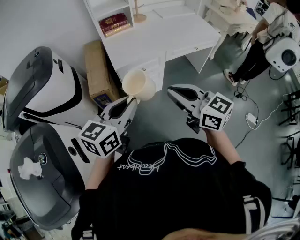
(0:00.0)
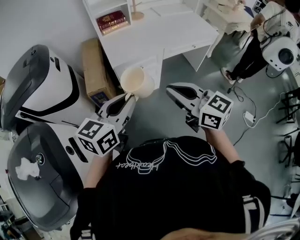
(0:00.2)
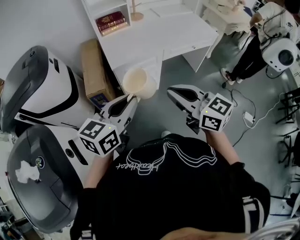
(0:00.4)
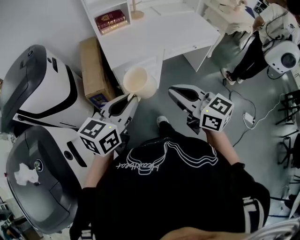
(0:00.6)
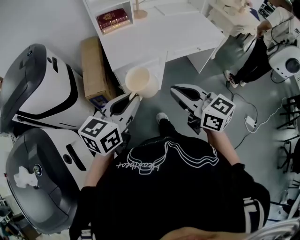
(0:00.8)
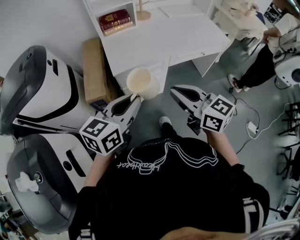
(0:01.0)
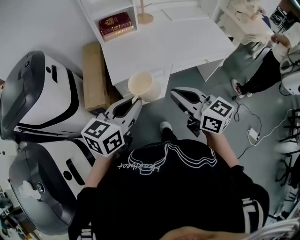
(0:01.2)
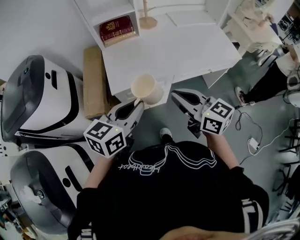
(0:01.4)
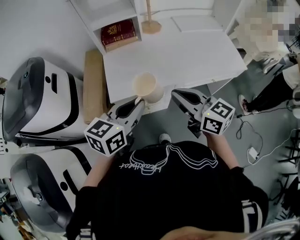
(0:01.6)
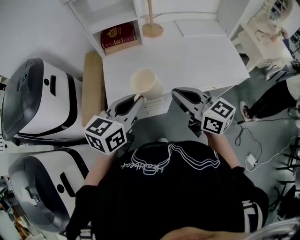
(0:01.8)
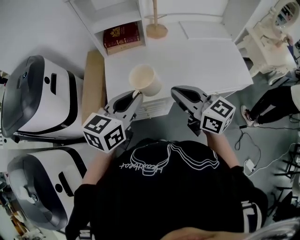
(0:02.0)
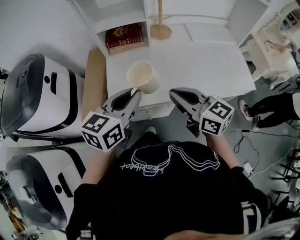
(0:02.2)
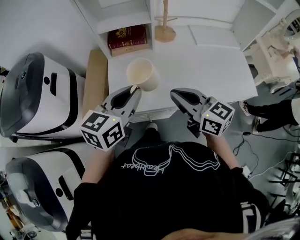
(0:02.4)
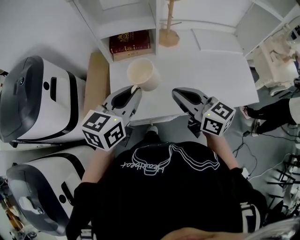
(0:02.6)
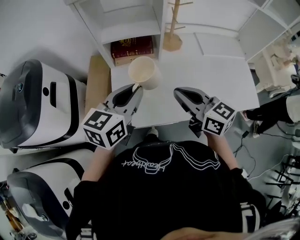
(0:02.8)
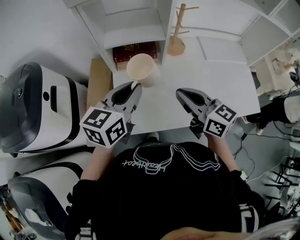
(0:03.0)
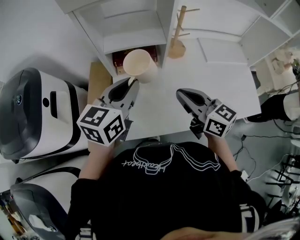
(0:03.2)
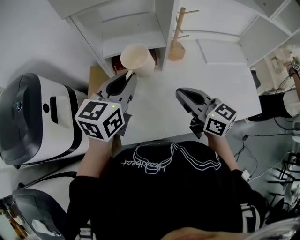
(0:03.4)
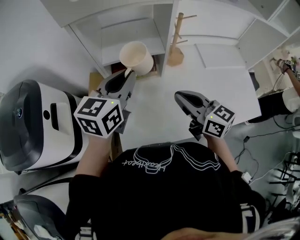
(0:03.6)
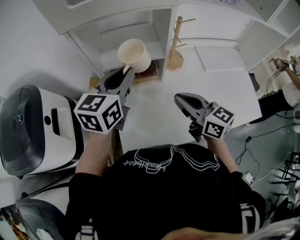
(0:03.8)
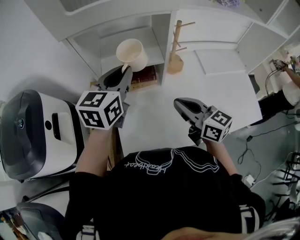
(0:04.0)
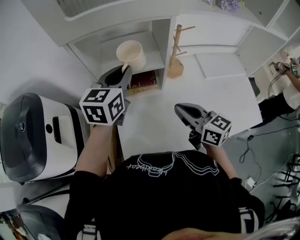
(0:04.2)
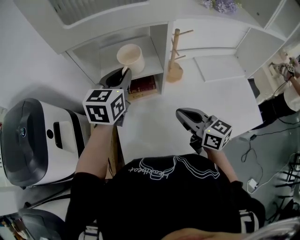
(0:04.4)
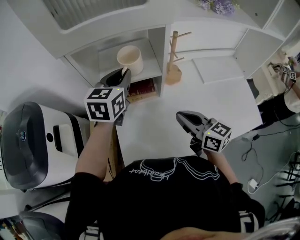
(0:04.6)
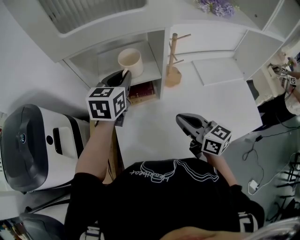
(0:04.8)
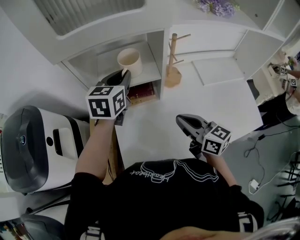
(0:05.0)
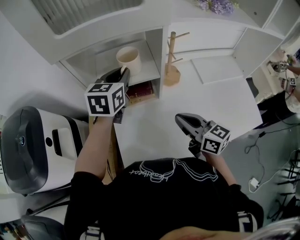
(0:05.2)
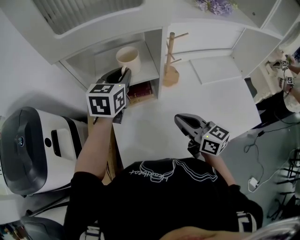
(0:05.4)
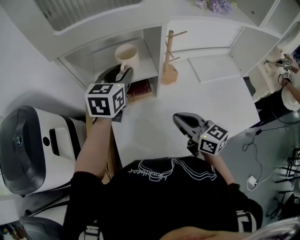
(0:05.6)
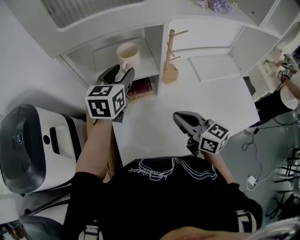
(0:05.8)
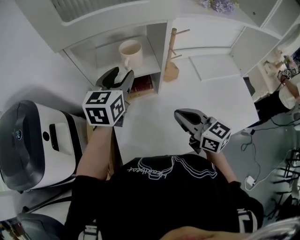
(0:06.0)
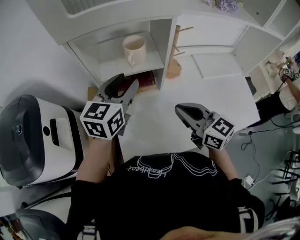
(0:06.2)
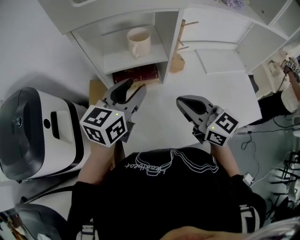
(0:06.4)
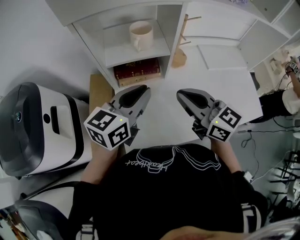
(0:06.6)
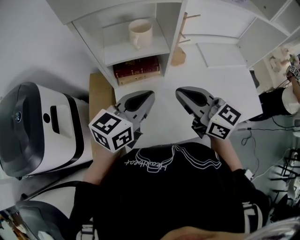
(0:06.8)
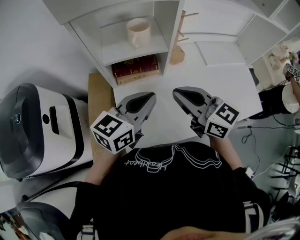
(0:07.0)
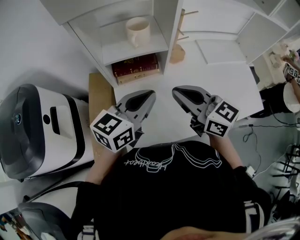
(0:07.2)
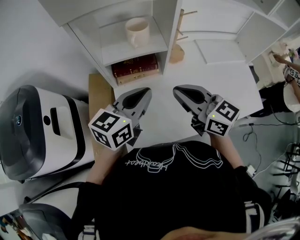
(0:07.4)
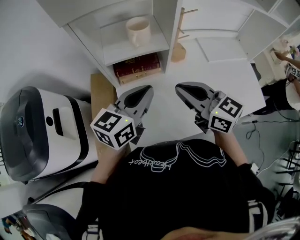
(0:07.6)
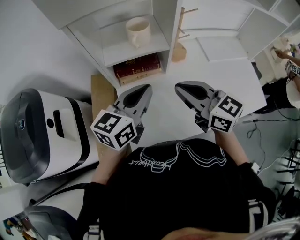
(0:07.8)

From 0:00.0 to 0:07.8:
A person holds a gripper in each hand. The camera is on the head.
From 0:00.0 to 0:01.6: Both grippers travel together forward, some 30 cm.
From 0:01.6 to 0:03.2: The two grippers go some 30 cm forward.
From 0:03.2 to 0:04.6: The left gripper heads forward, covering approximately 15 cm. The right gripper shifts by roughly 5 cm.
From 0:04.6 to 0:06.2: The left gripper travels backward by roughly 5 cm, and opens up.
From 0:06.2 to 0:07.8: The left gripper moves backward, roughly 10 cm, and closes up.

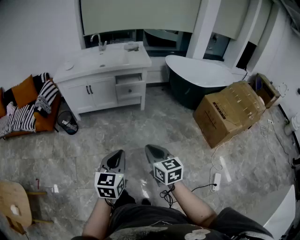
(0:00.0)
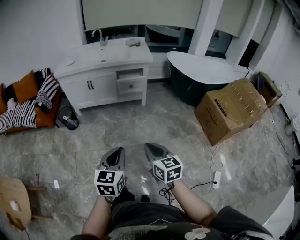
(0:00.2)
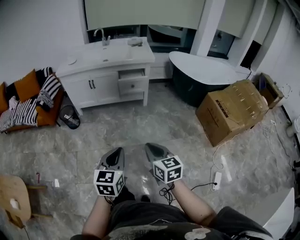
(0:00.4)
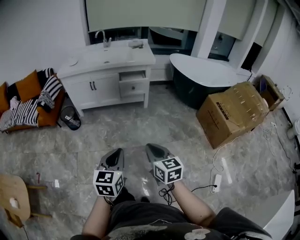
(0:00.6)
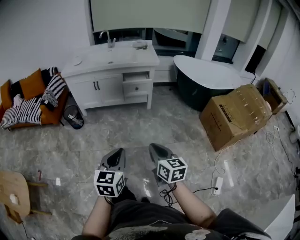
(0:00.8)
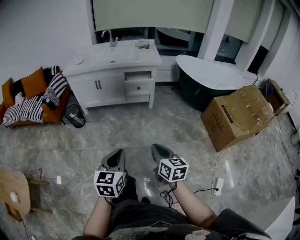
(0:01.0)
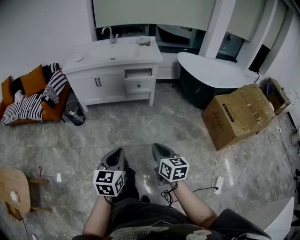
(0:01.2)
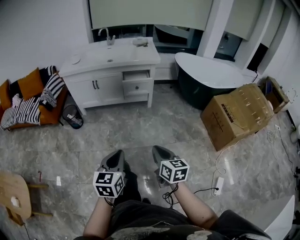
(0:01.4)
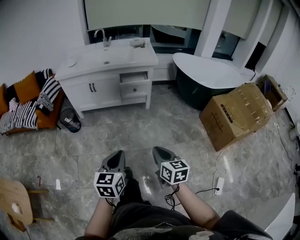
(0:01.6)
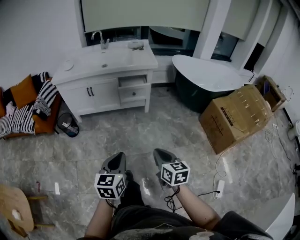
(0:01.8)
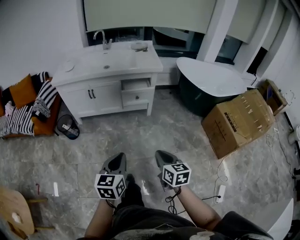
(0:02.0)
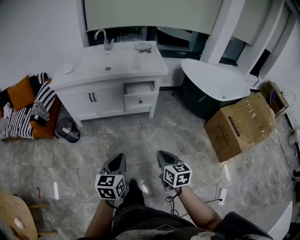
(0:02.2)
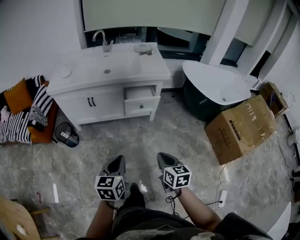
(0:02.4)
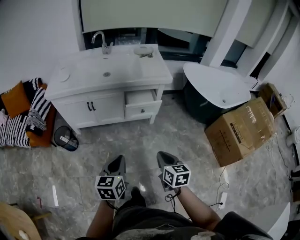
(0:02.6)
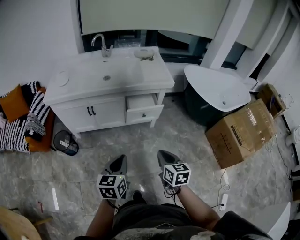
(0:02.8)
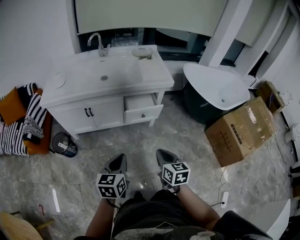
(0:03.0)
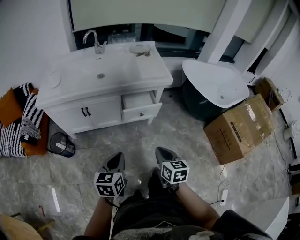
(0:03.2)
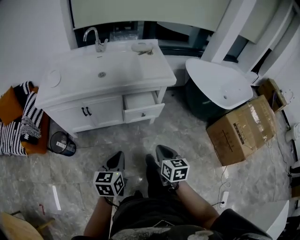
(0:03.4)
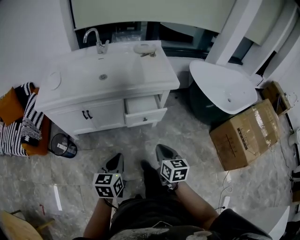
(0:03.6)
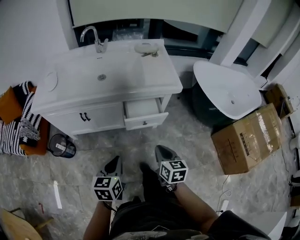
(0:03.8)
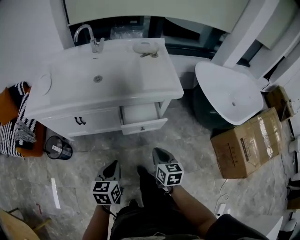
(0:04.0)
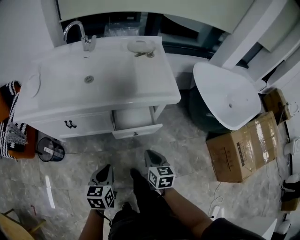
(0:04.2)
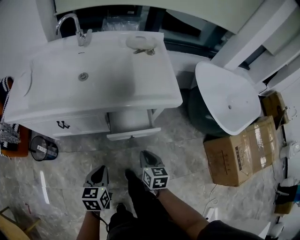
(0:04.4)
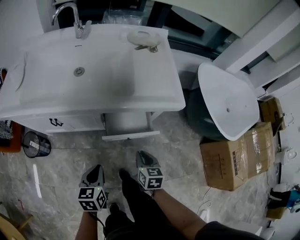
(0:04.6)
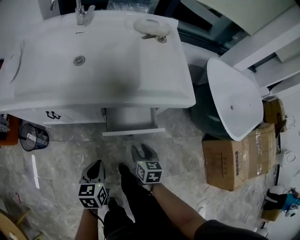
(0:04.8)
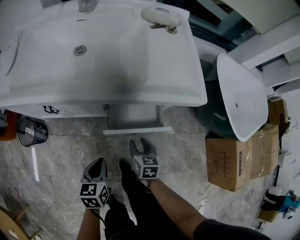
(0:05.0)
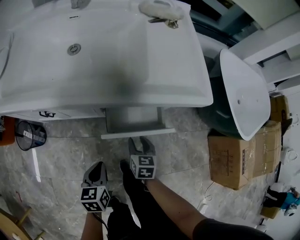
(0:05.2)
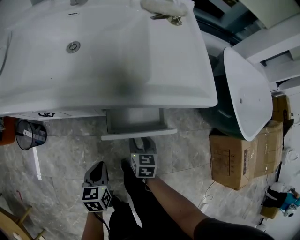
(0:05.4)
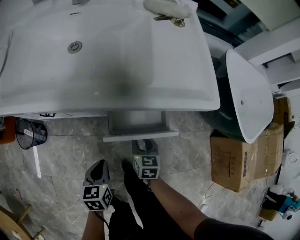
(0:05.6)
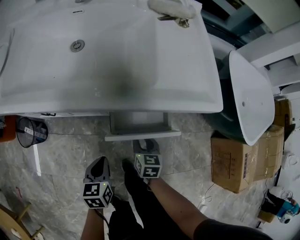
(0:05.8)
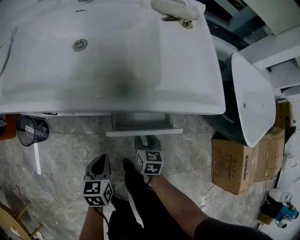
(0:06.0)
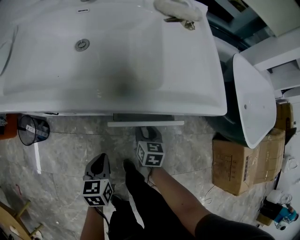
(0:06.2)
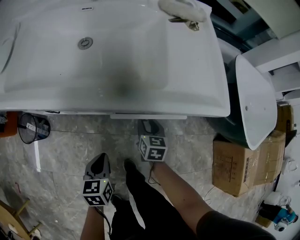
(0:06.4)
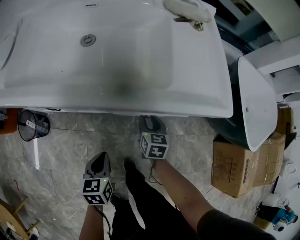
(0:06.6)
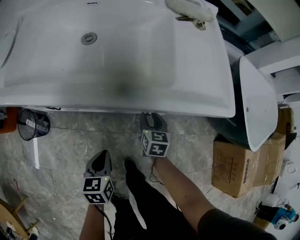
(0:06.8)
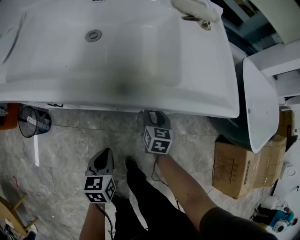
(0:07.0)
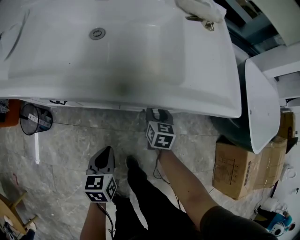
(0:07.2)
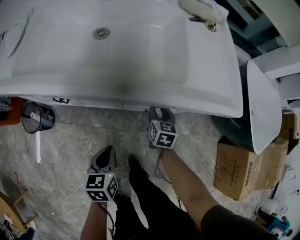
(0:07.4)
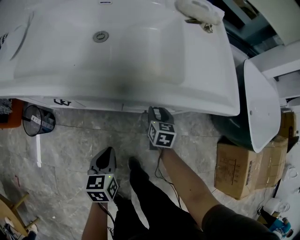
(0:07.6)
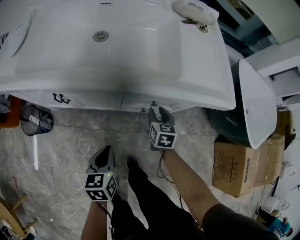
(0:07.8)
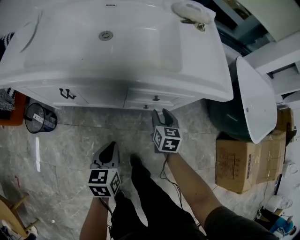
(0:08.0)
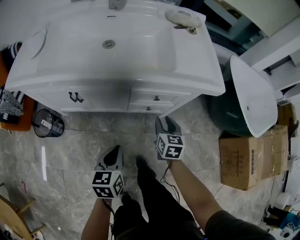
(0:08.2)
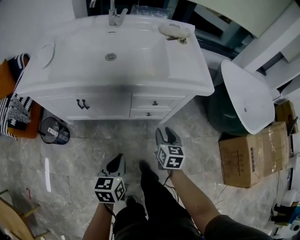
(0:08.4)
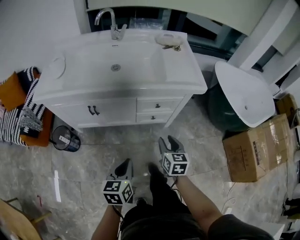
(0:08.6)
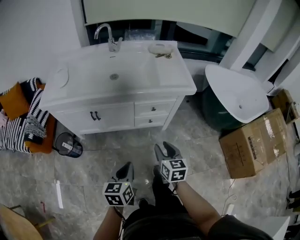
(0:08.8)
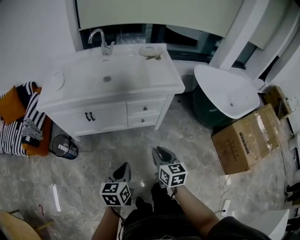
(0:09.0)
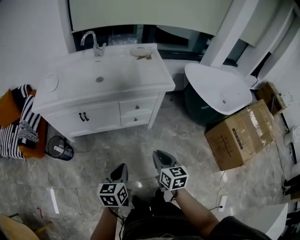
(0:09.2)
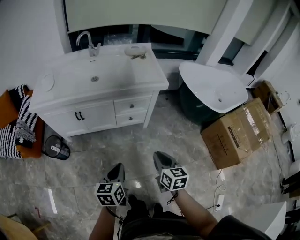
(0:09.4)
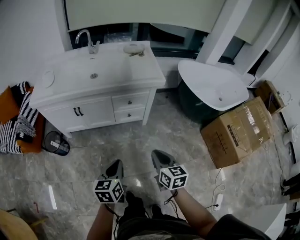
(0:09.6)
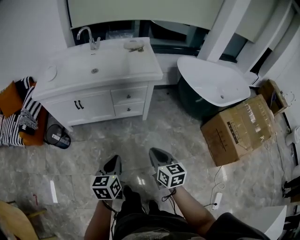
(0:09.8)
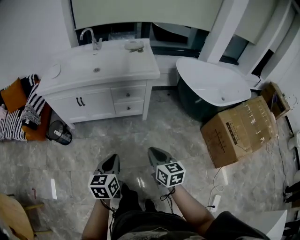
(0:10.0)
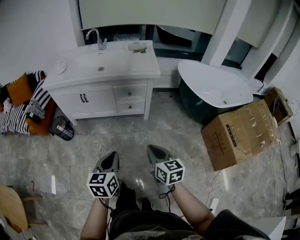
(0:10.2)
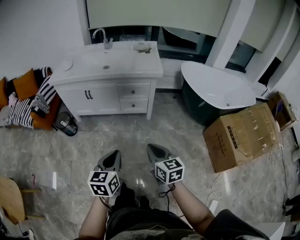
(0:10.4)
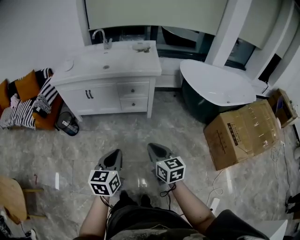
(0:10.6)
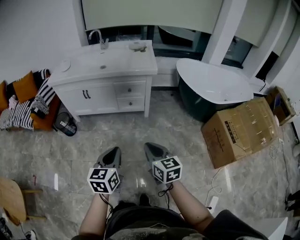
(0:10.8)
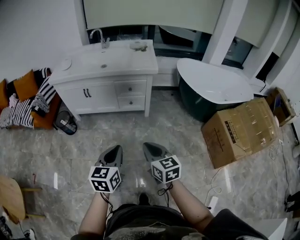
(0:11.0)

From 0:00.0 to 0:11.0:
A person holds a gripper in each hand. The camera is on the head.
From 0:00.0 to 0:01.6: Both grippers move forward, roughly 5 cm.
From 0:01.6 to 0:03.2: The two grippers go roughly 35 cm forward.
From 0:03.2 to 0:04.8: The grippers both shift forward and downward by roughly 35 cm. The right gripper opens up.
From 0:04.8 to 0:06.2: The right gripper moves forward and downward, about 15 cm. The left gripper shifts about 5 cm downward.
From 0:07.8 to 0:09.4: Both grippers move backward and upward, roughly 40 cm. The right gripper closes.
From 0:09.4 to 0:11.0: The left gripper shifts about 25 cm backward, to the right and upward. Meanwhile the right gripper moves backward, approximately 20 cm, and rotates roughly 20 degrees.

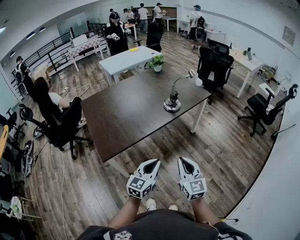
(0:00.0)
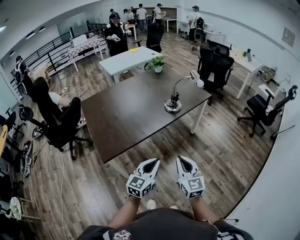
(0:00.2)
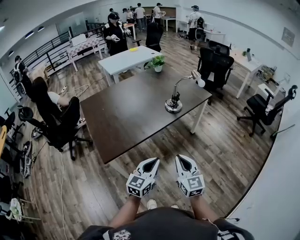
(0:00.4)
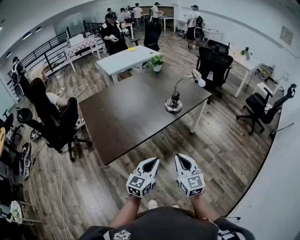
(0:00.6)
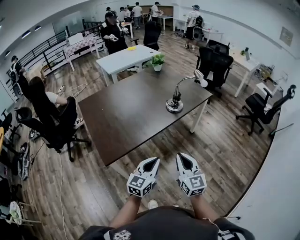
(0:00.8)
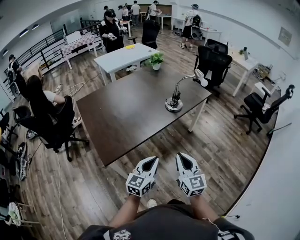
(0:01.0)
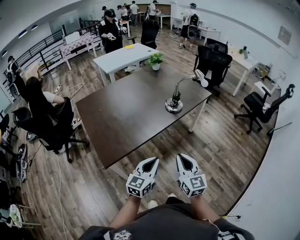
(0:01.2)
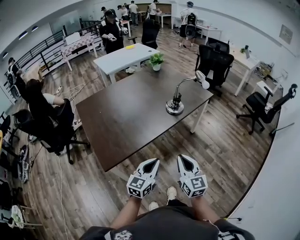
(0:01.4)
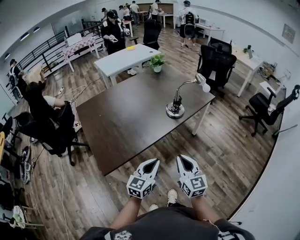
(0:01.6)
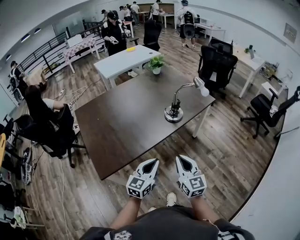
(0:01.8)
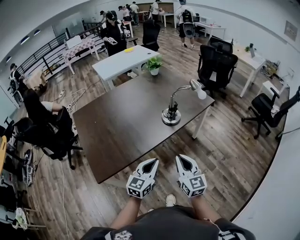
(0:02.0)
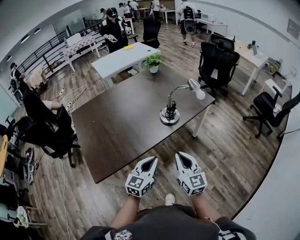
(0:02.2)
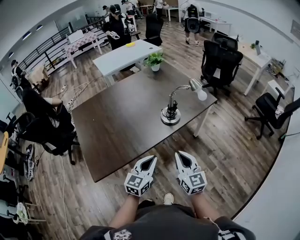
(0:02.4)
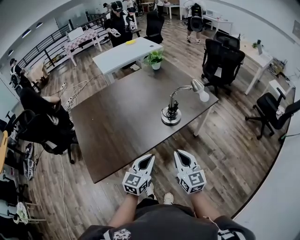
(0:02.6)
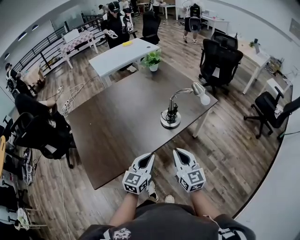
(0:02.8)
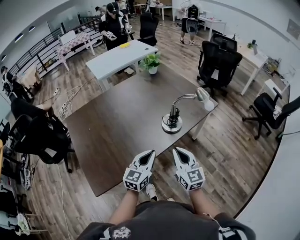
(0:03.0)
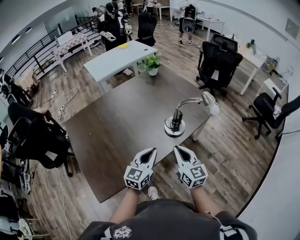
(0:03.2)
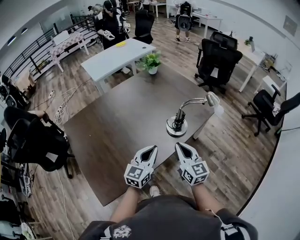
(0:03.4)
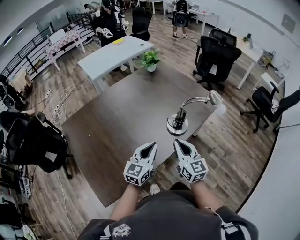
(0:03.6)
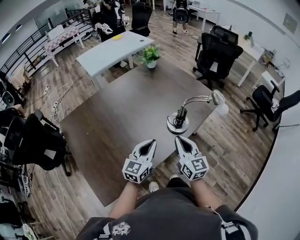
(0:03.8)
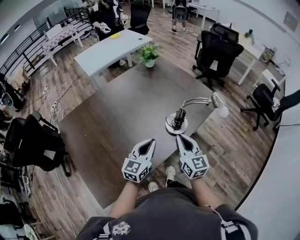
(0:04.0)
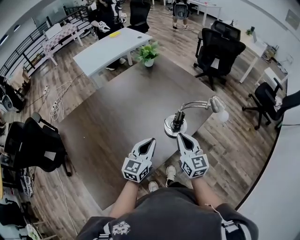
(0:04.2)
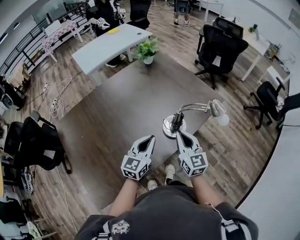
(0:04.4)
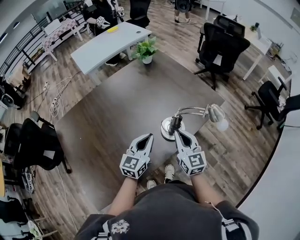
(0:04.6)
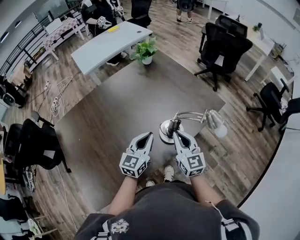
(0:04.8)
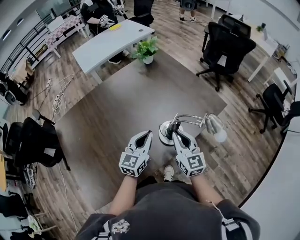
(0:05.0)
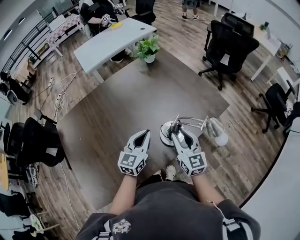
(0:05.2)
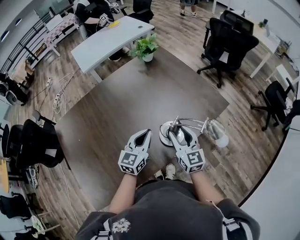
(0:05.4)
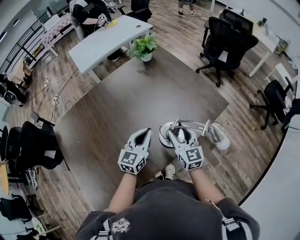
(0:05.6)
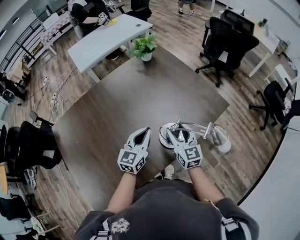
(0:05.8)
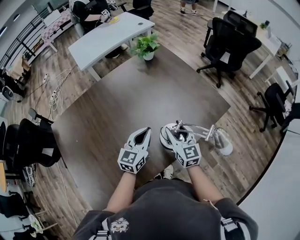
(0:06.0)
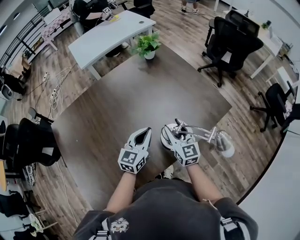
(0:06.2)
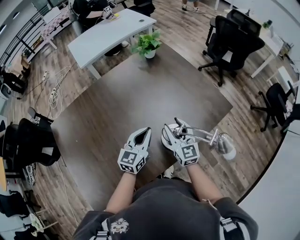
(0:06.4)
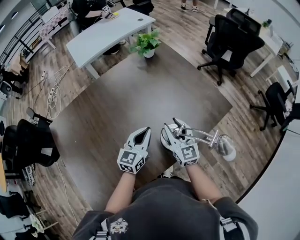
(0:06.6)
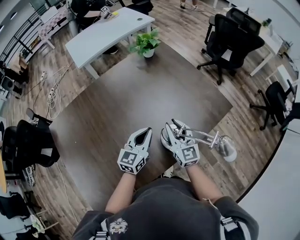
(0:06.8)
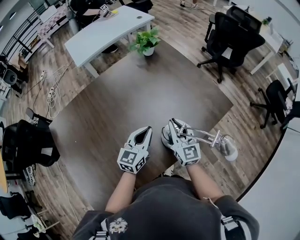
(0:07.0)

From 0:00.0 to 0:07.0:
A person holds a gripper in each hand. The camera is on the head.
From 0:00.0 to 0:01.4: The right gripper heads forward and to the left, covering about 10 cm. The left gripper travels to the left and forward by about 10 cm.
From 0:01.4 to 0:02.8: Both grippers move forward, roughly 20 cm.
From 0:02.8 to 0:04.2: The two grippers go some 20 cm forward.
From 0:04.2 to 0:05.6: Both grippers move forward, approximately 15 cm. The right gripper opens.
From 0:05.6 to 0:07.0: The right gripper shifts approximately 5 cm forward, and closes its fingers.
